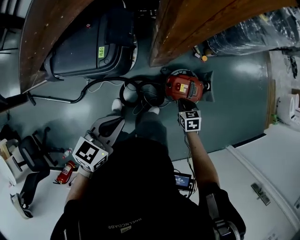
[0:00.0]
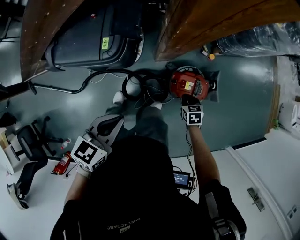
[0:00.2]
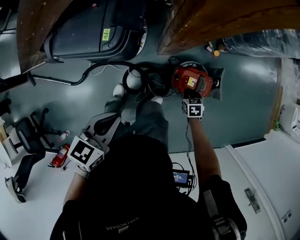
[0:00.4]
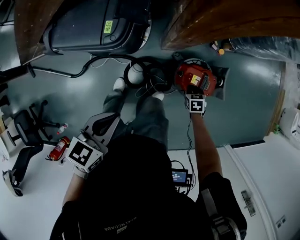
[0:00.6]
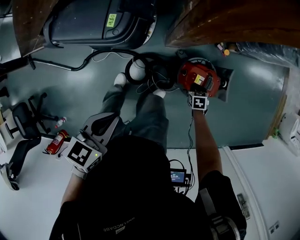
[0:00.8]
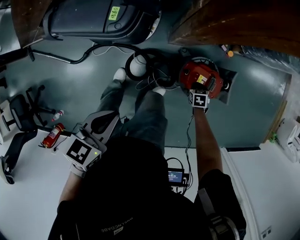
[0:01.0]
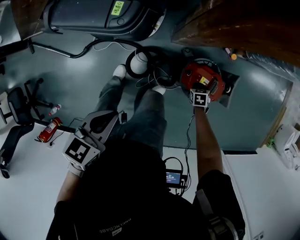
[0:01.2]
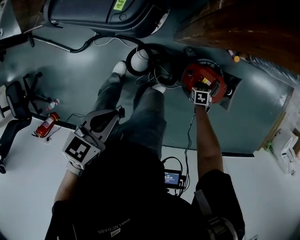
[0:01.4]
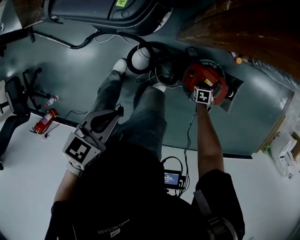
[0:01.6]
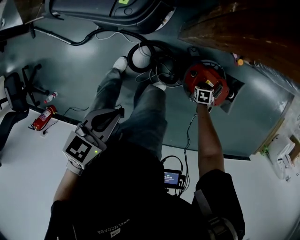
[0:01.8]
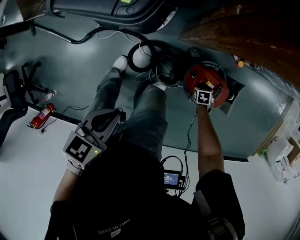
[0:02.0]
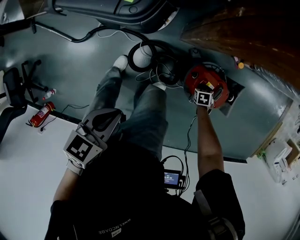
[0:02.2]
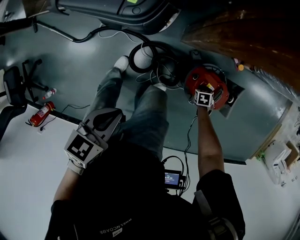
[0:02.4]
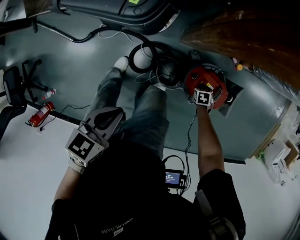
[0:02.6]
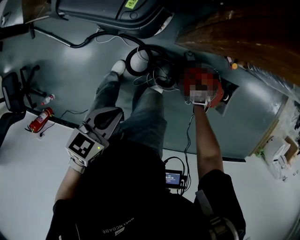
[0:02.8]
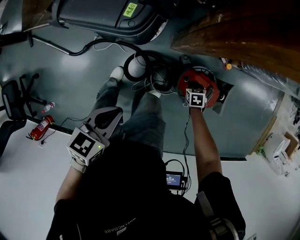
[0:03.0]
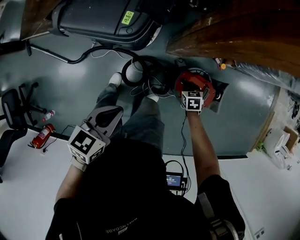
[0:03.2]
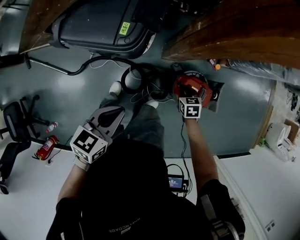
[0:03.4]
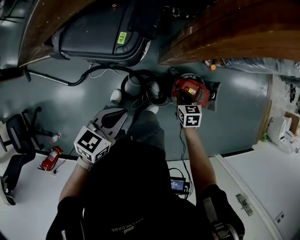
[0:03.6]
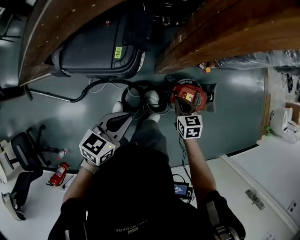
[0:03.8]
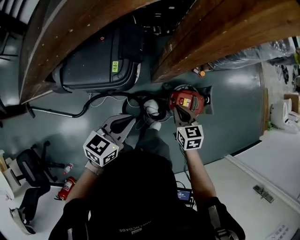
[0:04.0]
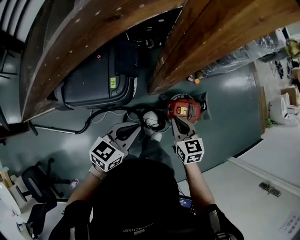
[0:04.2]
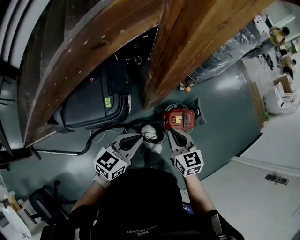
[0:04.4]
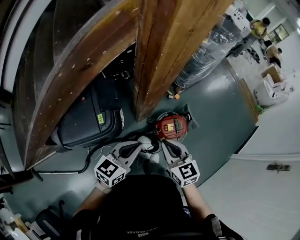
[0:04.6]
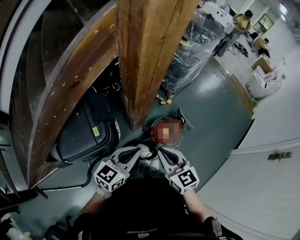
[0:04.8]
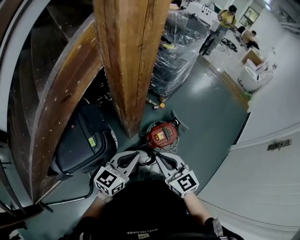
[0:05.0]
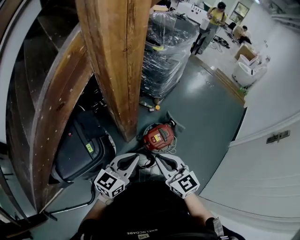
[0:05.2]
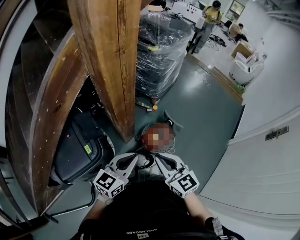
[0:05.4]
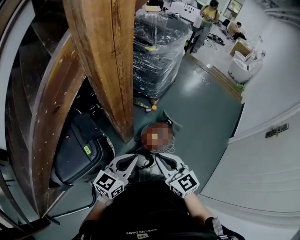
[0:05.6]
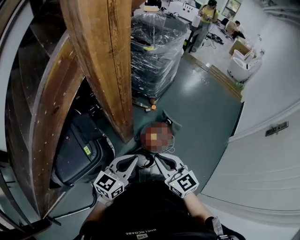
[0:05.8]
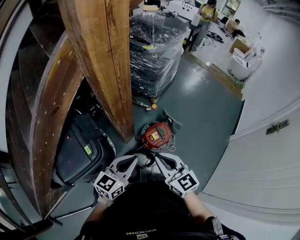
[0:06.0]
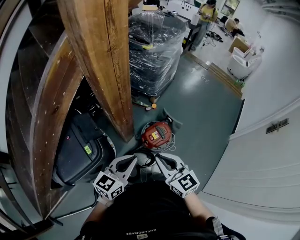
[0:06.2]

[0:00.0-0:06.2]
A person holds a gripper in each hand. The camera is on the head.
0:00.0 to 0:01.6: The left gripper moves downward, approximately 15 cm, and turns by about 20 degrees. Meanwhile the right gripper moves downward, about 30 cm, and turns by some 20 degrees.
0:01.6 to 0:03.2: The left gripper is displaced upward by about 5 cm, while the right gripper heads upward, covering some 15 cm.
0:03.2 to 0:04.6: The left gripper goes roughly 20 cm upward, and rotates some 40 degrees; the right gripper shifts some 50 cm upward, and tilts its fingers approximately 40 degrees upward.
0:04.6 to 0:06.2: The left gripper travels to the right by about 10 cm. The right gripper travels to the right and upward by about 10 cm.

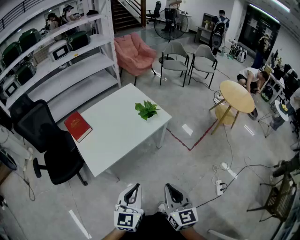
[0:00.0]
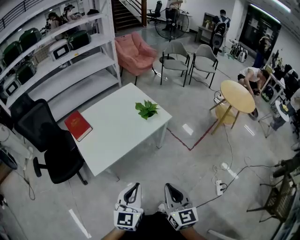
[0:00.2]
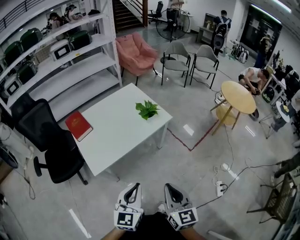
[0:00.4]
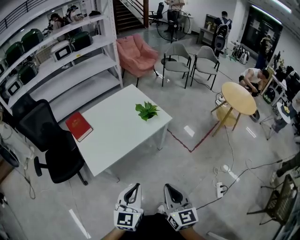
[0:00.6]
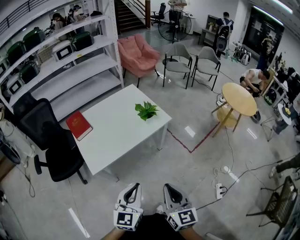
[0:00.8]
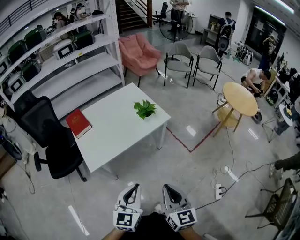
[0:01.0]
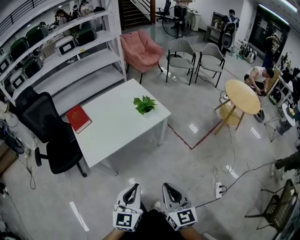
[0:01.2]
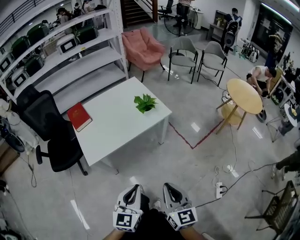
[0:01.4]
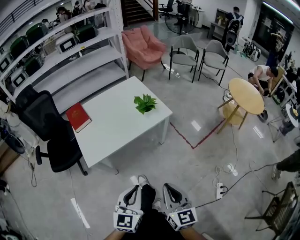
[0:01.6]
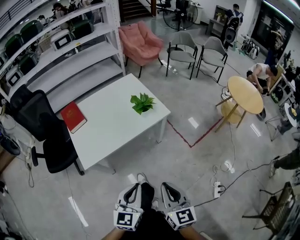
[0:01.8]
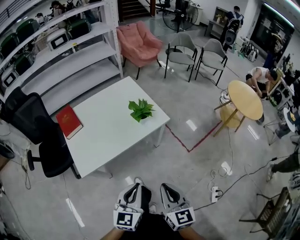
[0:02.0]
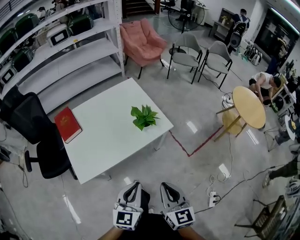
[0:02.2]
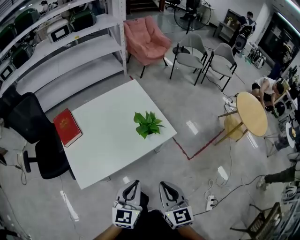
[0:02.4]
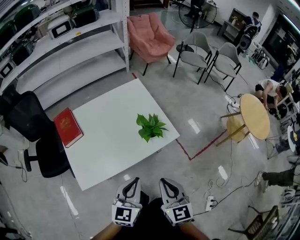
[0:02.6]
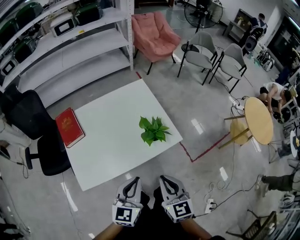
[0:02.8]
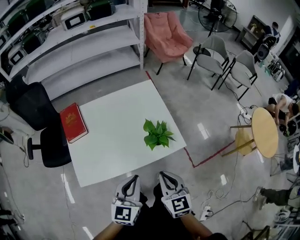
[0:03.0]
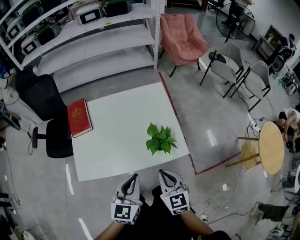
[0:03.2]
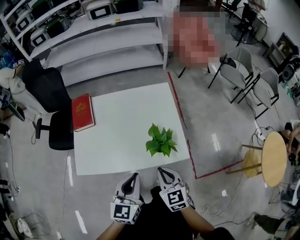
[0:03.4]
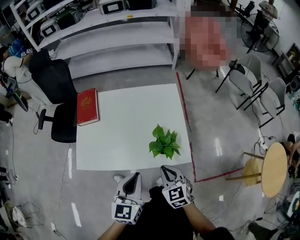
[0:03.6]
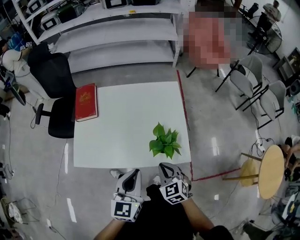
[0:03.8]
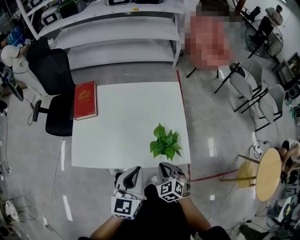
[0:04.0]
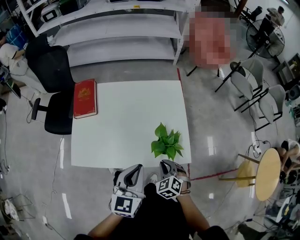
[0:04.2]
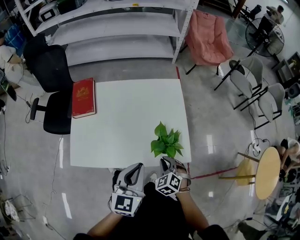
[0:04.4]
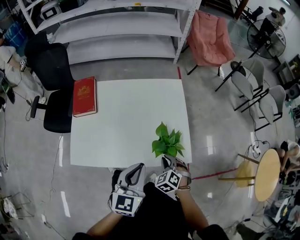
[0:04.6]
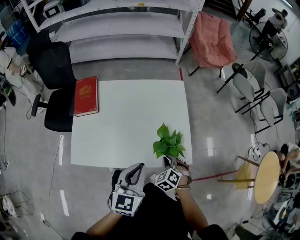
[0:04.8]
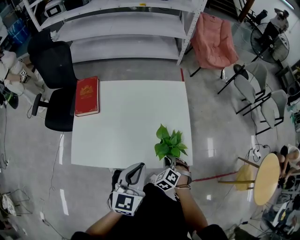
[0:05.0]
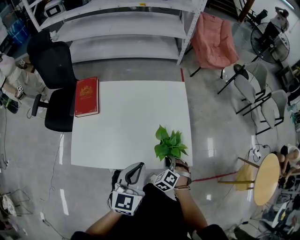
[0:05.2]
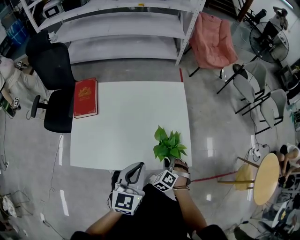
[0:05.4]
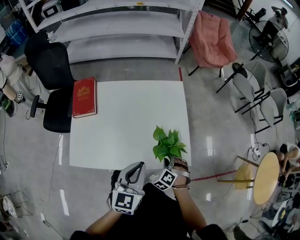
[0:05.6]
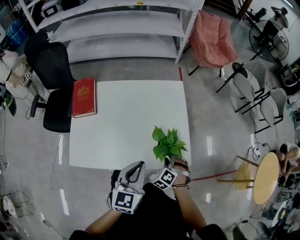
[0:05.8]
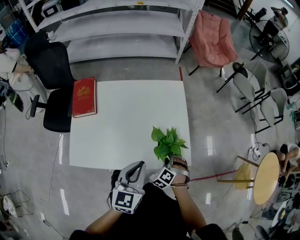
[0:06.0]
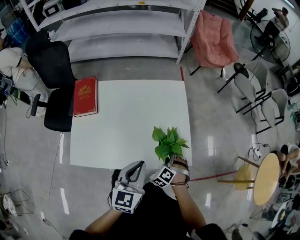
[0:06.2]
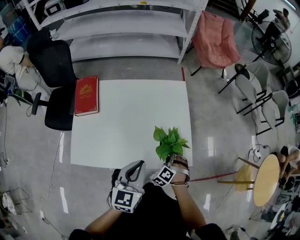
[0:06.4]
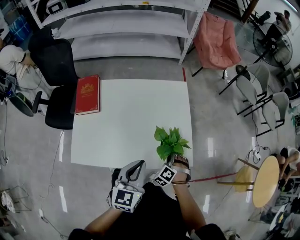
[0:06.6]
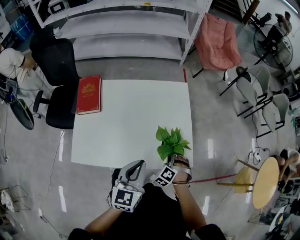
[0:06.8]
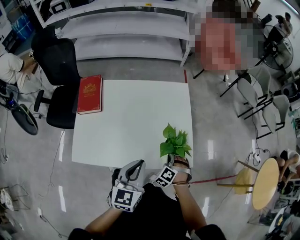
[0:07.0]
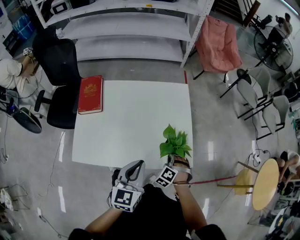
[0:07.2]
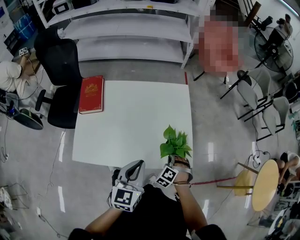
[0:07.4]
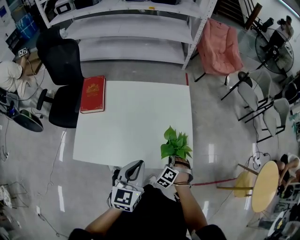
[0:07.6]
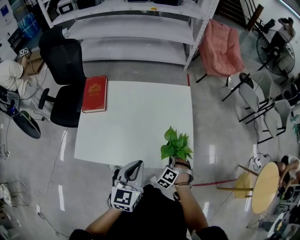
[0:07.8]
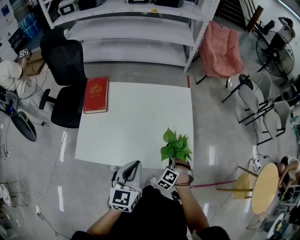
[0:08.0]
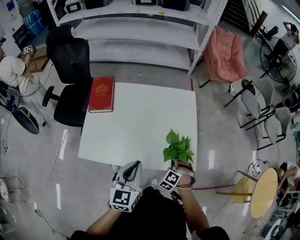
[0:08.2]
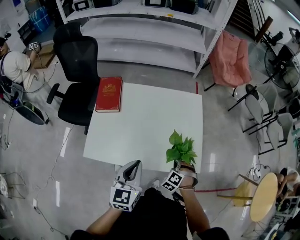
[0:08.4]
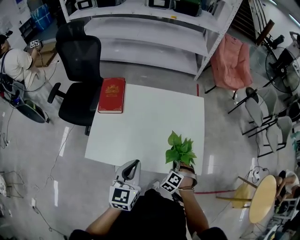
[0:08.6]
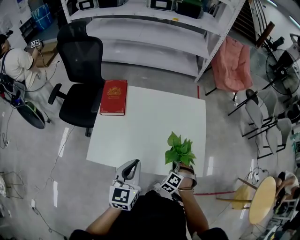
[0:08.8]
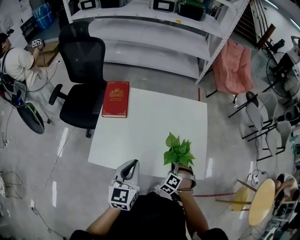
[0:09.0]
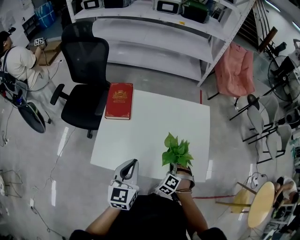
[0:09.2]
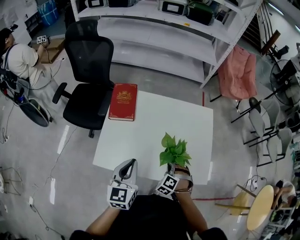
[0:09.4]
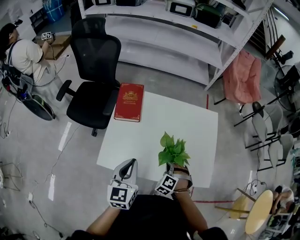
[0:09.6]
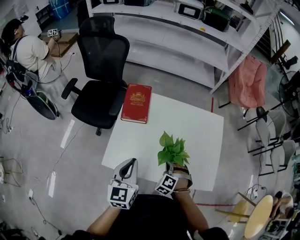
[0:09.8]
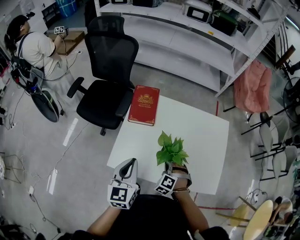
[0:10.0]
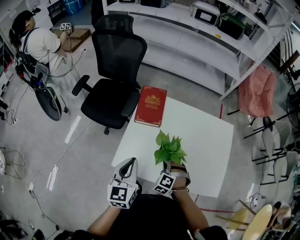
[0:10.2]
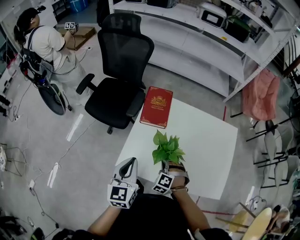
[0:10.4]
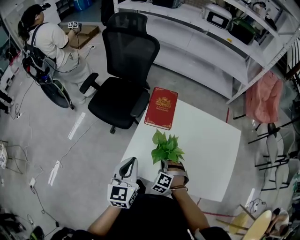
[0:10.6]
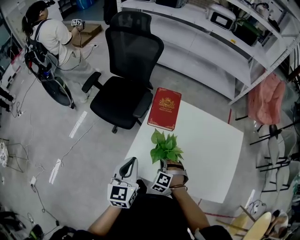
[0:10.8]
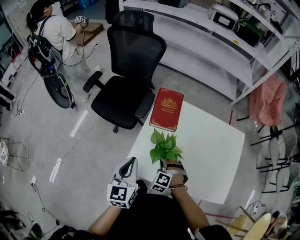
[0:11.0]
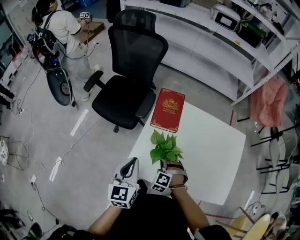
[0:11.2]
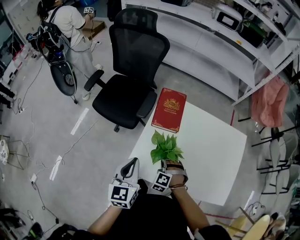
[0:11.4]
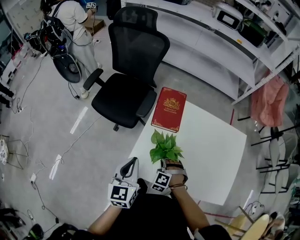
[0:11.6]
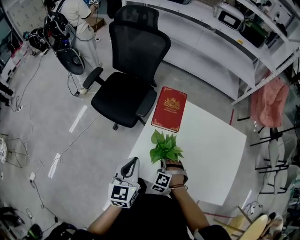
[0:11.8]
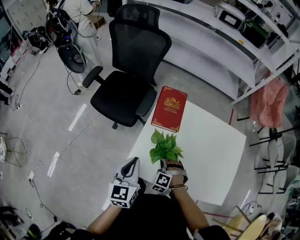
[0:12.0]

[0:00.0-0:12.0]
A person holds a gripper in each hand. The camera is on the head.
0:00.0 to 0:01.6: Both grippers move to the right, roughly 10 cm.
0:01.6 to 0:03.0: Both grippers travel together forward, roughly 35 cm. The right gripper turns by roughly 20 degrees.
0:03.0 to 0:04.4: The right gripper travels downward and forward by roughly 20 cm, and rolls counterclockwise, seen from behind, by roughly 40 degrees; the left gripper heads forward, covering approximately 10 cm.
0:04.4 to 0:06.0: The right gripper moves downward, some 5 cm, swivels approximately 20 degrees, and opens.
0:06.0 to 0:07.6: The right gripper closes.
0:07.6 to 0:09.0: The grippers both shift to the left by approximately 15 cm.
0:09.0 to 0:10.4: Both grippers travel together to the left, about 25 cm. The right gripper changes its angle by about 20 degrees.
0:10.4 to 0:12.0: The grippers both shift to the left by about 5 cm.

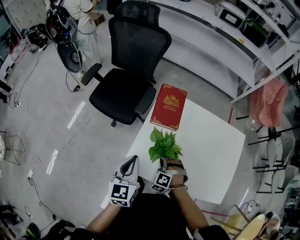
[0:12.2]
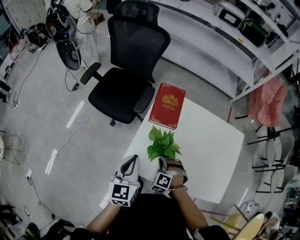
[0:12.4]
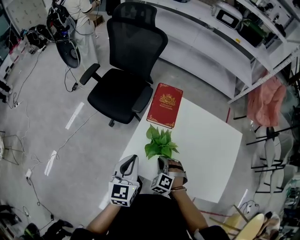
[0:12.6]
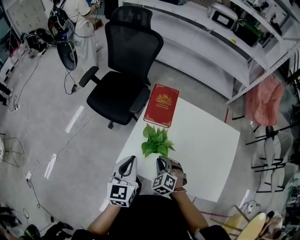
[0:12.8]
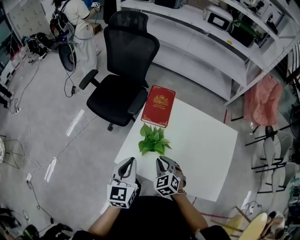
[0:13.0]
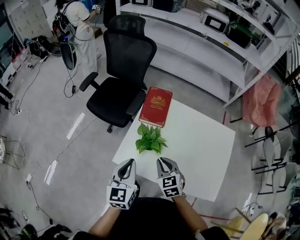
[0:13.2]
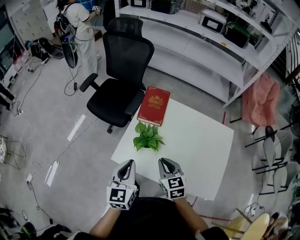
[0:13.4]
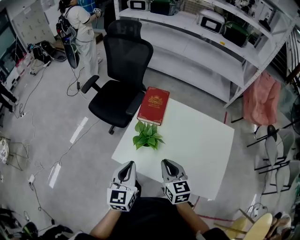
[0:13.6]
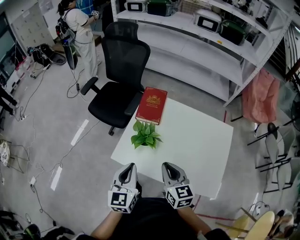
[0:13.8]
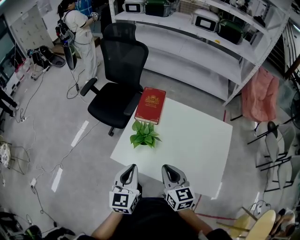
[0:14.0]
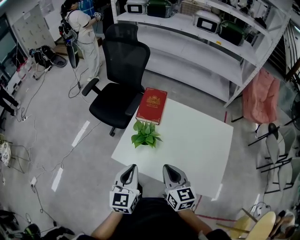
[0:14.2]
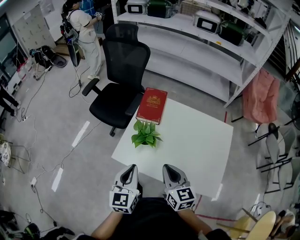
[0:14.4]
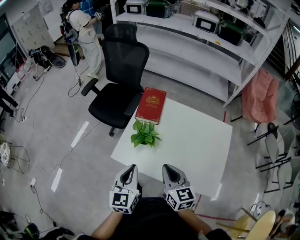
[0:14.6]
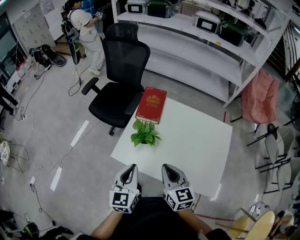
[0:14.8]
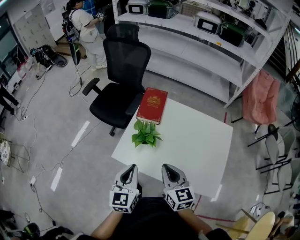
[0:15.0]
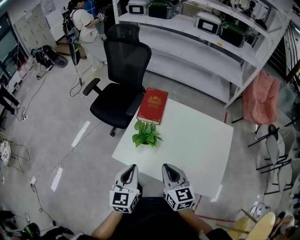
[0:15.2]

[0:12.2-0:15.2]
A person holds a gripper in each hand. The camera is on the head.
0:12.2 to 0:13.8: The right gripper is displaced upward, backward and to the right by approximately 25 cm, and rolls clockwise, seen from behind, by approximately 70 degrees. Meanwhile the left gripper heads backward, to the right and upward, covering about 20 cm.
0:13.8 to 0:15.2: The grippers stay close to where they were, moving slightly.

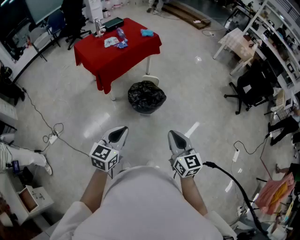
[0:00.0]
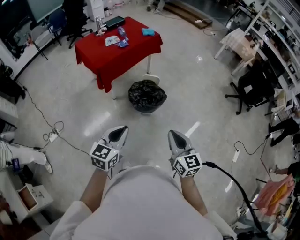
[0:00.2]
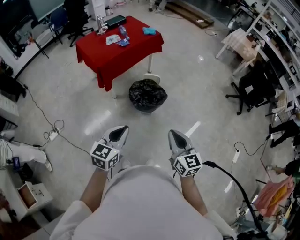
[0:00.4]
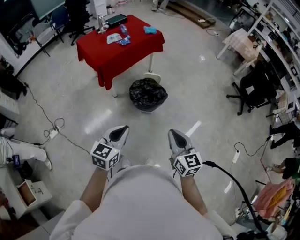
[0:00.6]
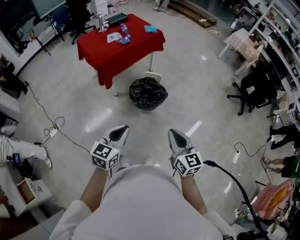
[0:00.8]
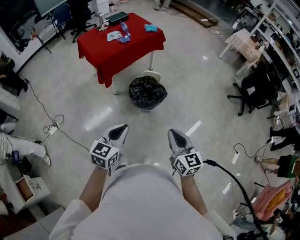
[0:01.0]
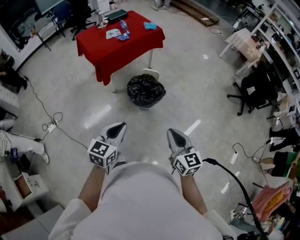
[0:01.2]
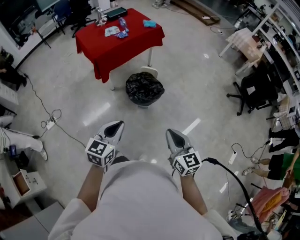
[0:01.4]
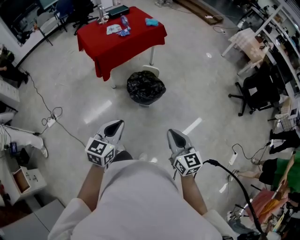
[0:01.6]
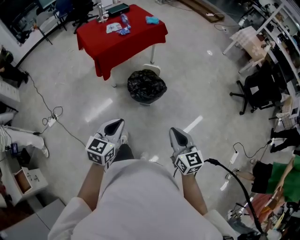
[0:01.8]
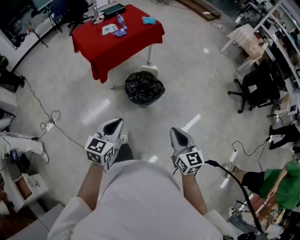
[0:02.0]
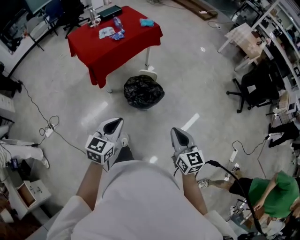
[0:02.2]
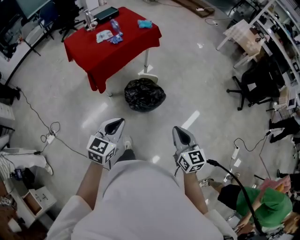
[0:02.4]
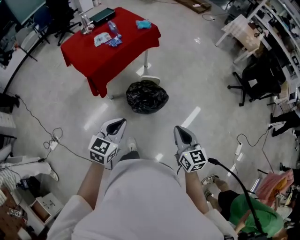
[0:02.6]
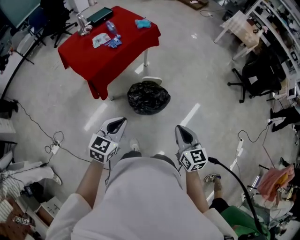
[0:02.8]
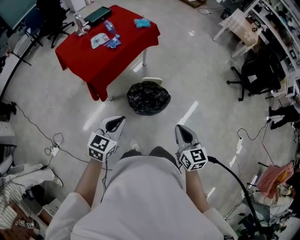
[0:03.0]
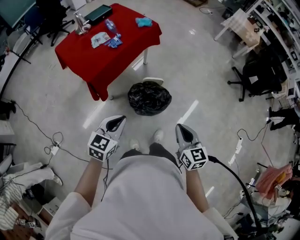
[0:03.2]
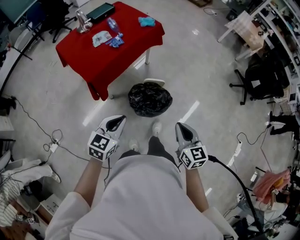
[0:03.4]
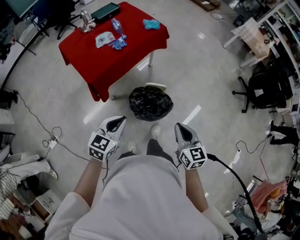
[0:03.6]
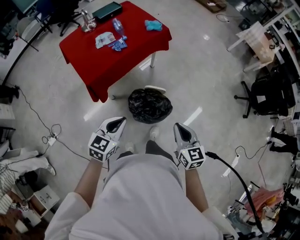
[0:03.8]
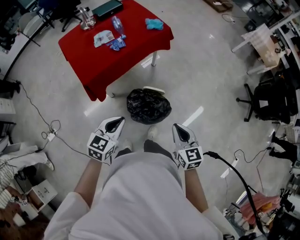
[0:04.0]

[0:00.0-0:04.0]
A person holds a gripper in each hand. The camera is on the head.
0:00.0 to 0:01.4: Both grippers travel together to the right, about 5 cm.
0:01.4 to 0:02.6: The right gripper travels forward by roughly 20 cm, while the left gripper moves forward and to the left, roughly 20 cm.
0:02.6 to 0:04.0: The grippers both shift forward by approximately 20 cm.
